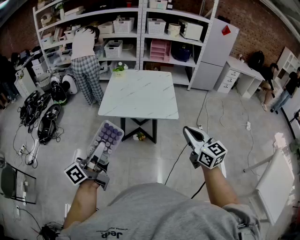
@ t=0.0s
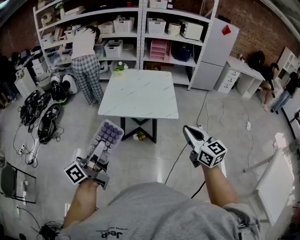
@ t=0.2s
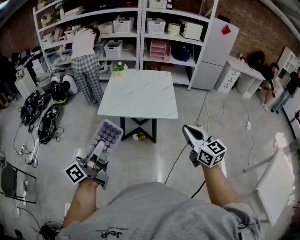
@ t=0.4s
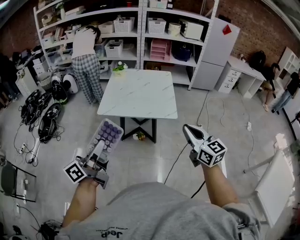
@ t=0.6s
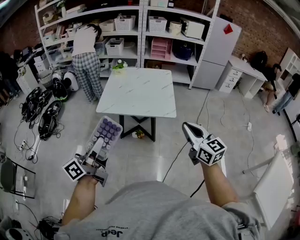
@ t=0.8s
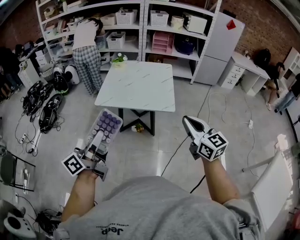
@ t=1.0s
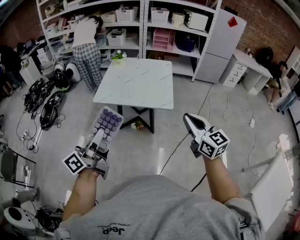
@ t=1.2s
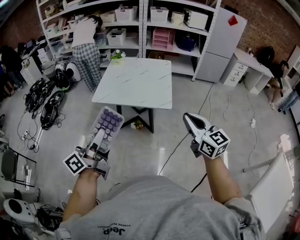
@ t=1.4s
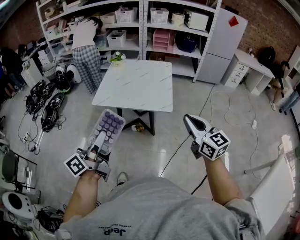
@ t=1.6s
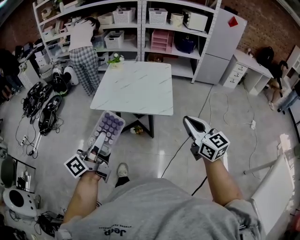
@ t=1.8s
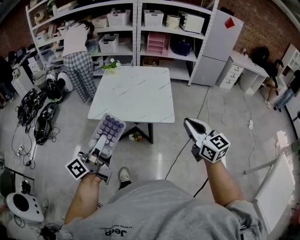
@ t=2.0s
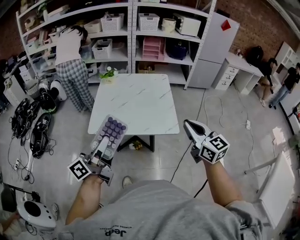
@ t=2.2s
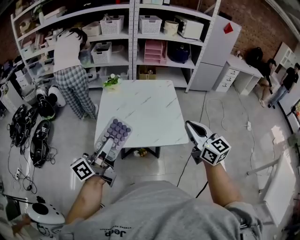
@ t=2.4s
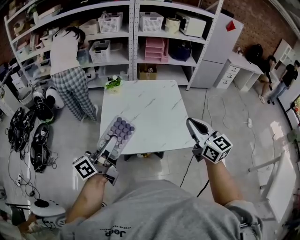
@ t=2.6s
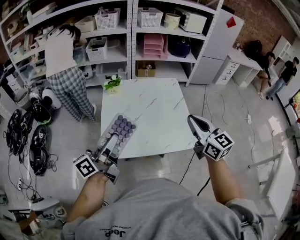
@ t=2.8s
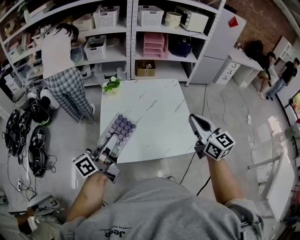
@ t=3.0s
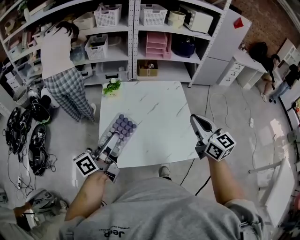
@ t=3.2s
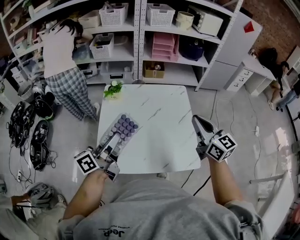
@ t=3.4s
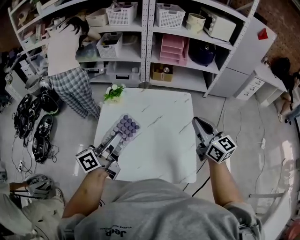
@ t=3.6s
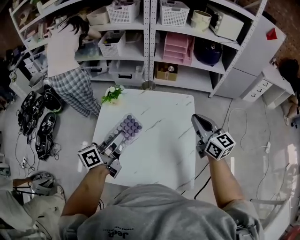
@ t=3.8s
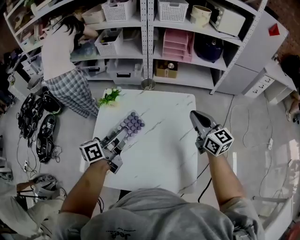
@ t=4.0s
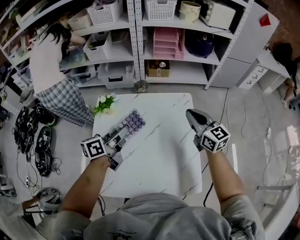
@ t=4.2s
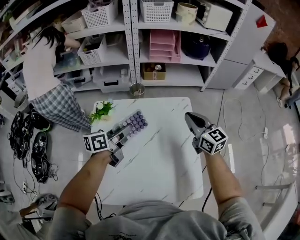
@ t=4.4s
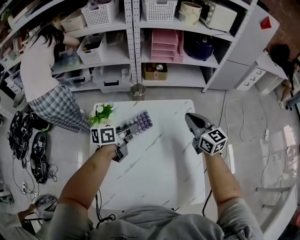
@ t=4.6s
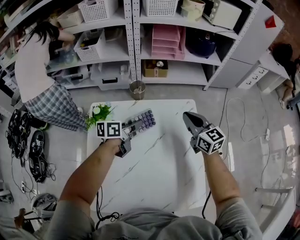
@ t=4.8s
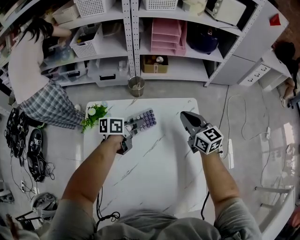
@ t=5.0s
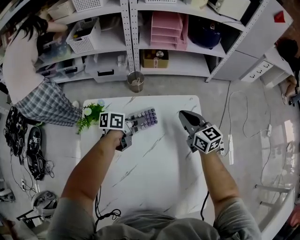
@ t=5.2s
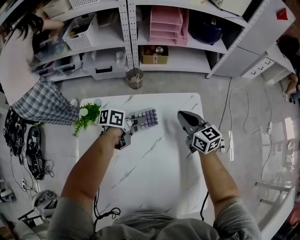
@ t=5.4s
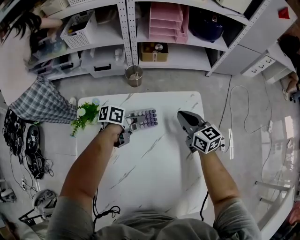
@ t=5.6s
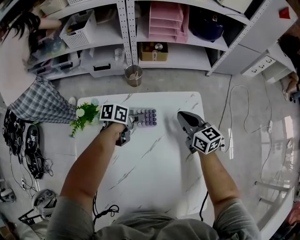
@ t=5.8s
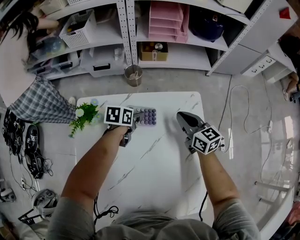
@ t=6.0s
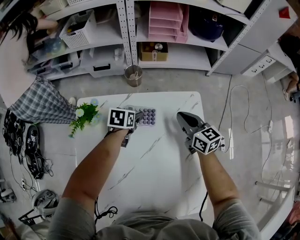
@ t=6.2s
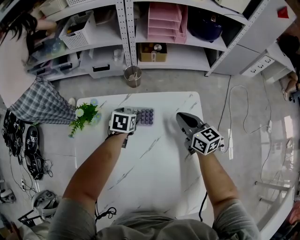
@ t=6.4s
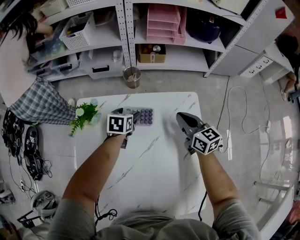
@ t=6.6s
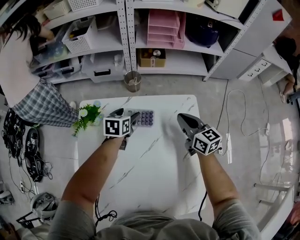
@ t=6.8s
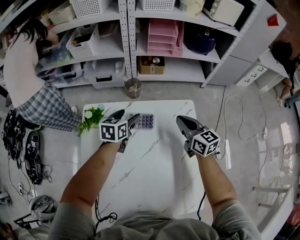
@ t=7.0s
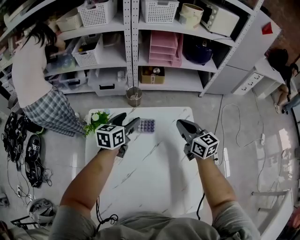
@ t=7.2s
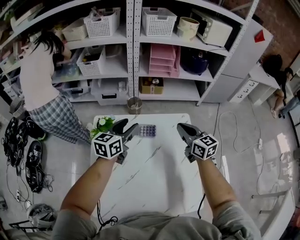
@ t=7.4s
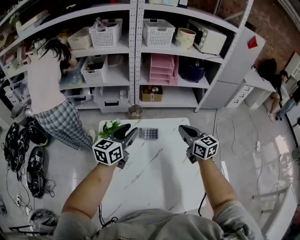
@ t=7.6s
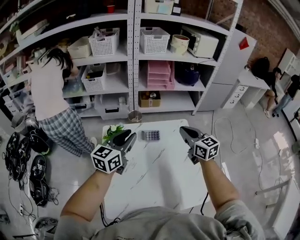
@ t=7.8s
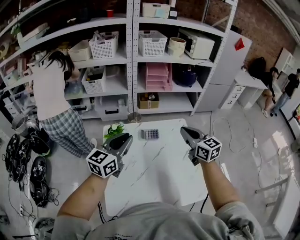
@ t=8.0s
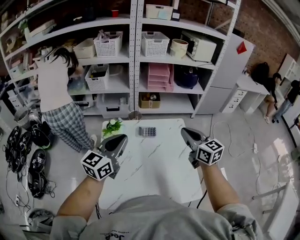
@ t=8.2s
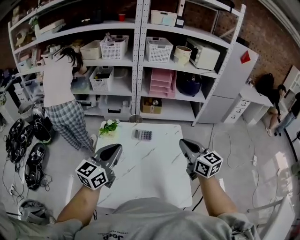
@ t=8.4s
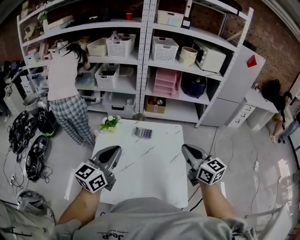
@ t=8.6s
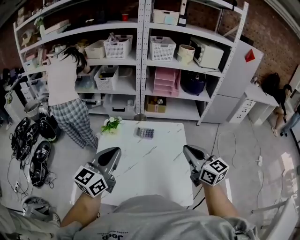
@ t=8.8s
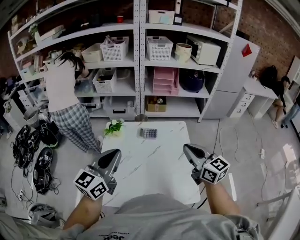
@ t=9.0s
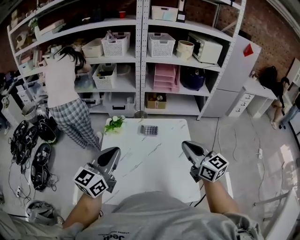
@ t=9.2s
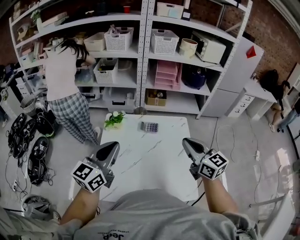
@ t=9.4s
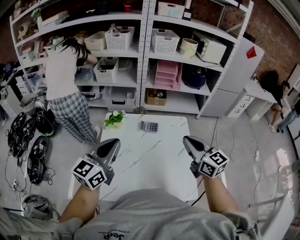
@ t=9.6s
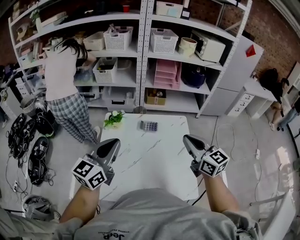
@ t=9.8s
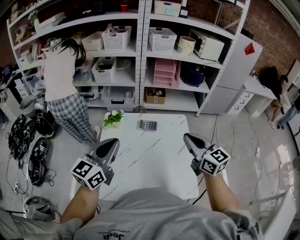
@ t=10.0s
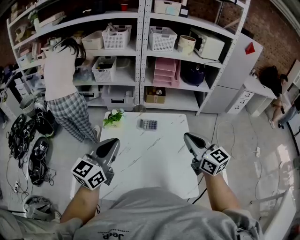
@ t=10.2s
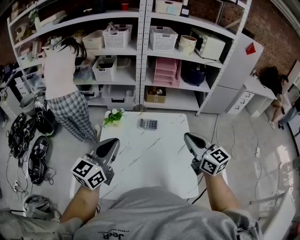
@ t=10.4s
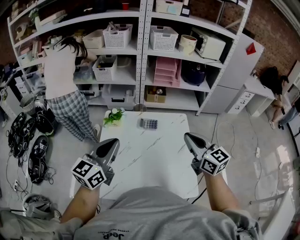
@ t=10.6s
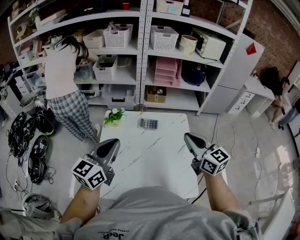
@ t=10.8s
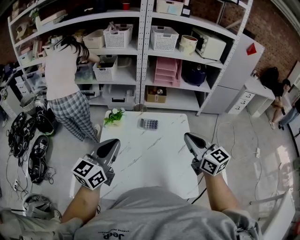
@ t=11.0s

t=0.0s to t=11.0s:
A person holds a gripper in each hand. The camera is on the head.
t=0.0s to t=1.6s: Both grippers travel together to the right, some 10 cm.
t=1.6s to t=3.2s: The two grippers travel together, forward and to the left, roughly 50 cm.
t=3.2s to t=4.8s: Both grippers move forward and downward, about 50 cm. The left gripper points its fingers some 30 degrees further downward.
t=4.8s to t=6.2s: Both grippers travel together downward and forward, some 15 cm. The left gripper points its fingers some 30 degrees further downward, and opens up.
t=6.2s to t=7.8s: The left gripper goes approximately 40 cm upward and backward, tilts its fingers some 50 degrees upward, and closes; the right gripper moves upward and backward, some 25 cm.
t=7.8s to t=9.4s: The left gripper moves backward, roughly 20 cm. The right gripper is displaced backward and upward by about 15 cm.
t=9.4s to t=11.0s: Both grippers stay put.

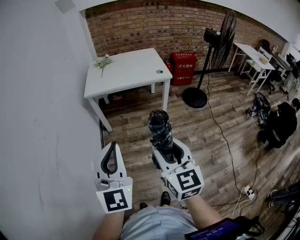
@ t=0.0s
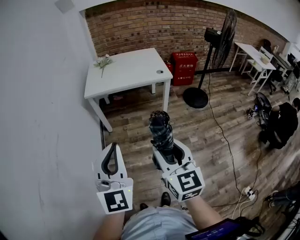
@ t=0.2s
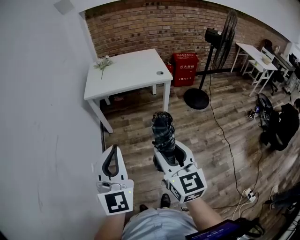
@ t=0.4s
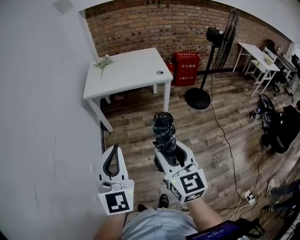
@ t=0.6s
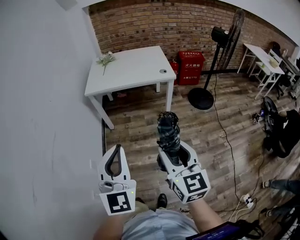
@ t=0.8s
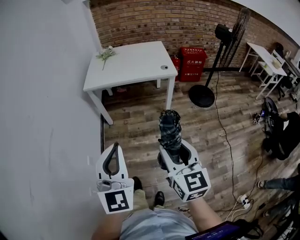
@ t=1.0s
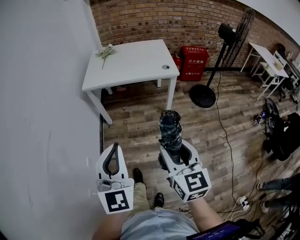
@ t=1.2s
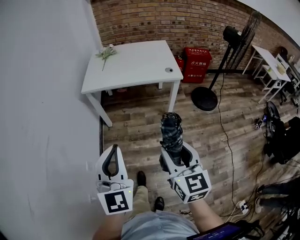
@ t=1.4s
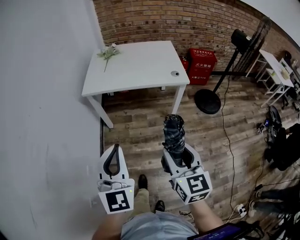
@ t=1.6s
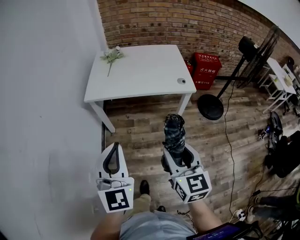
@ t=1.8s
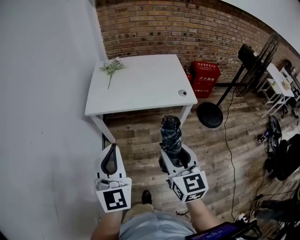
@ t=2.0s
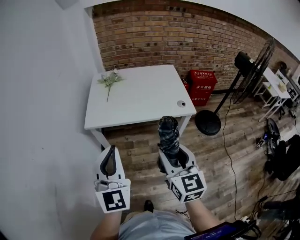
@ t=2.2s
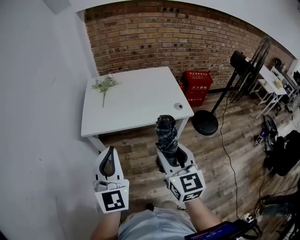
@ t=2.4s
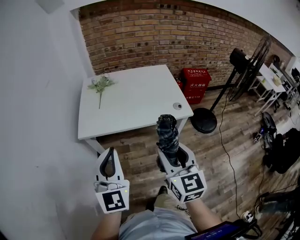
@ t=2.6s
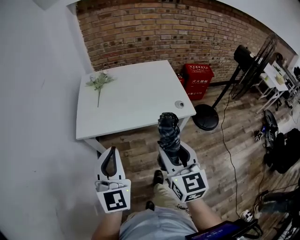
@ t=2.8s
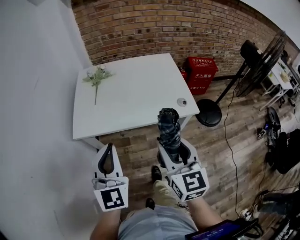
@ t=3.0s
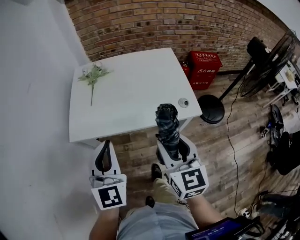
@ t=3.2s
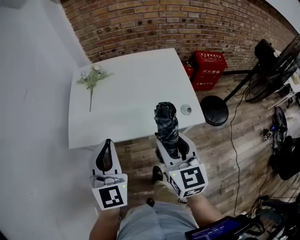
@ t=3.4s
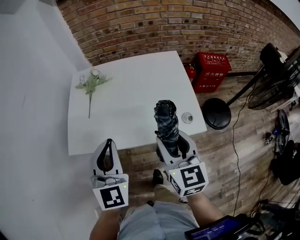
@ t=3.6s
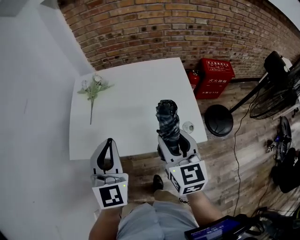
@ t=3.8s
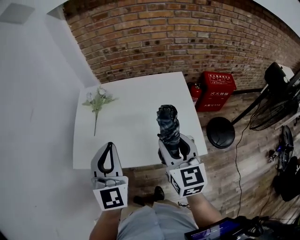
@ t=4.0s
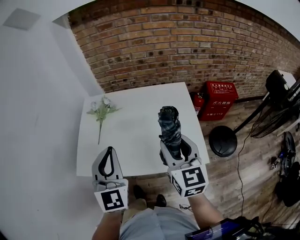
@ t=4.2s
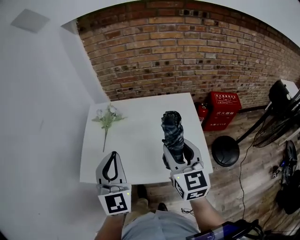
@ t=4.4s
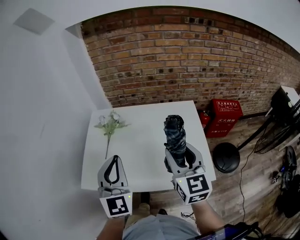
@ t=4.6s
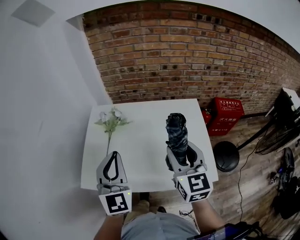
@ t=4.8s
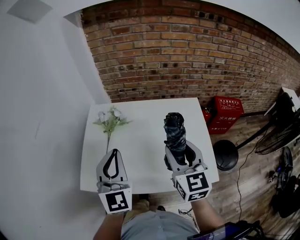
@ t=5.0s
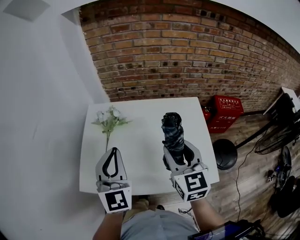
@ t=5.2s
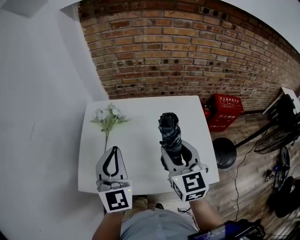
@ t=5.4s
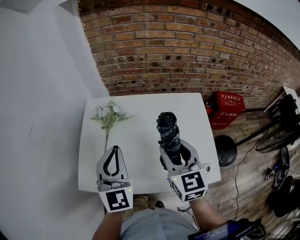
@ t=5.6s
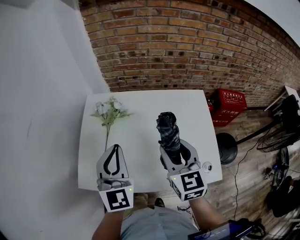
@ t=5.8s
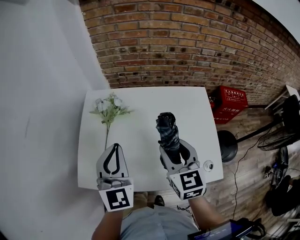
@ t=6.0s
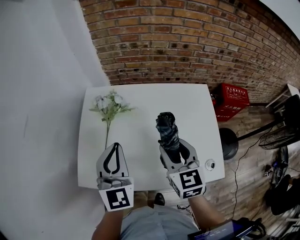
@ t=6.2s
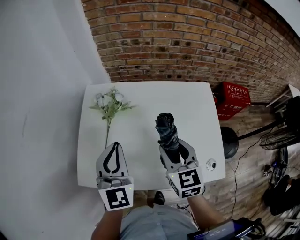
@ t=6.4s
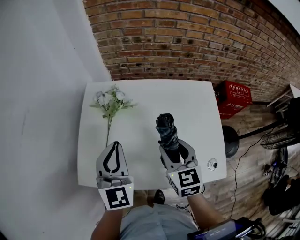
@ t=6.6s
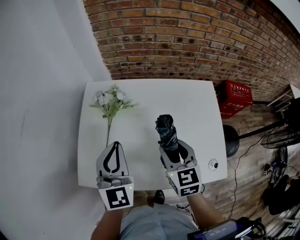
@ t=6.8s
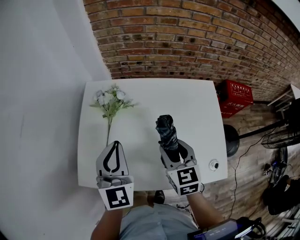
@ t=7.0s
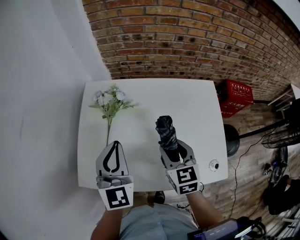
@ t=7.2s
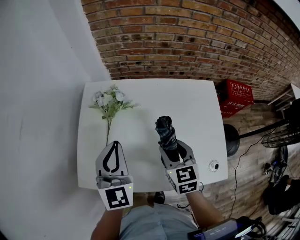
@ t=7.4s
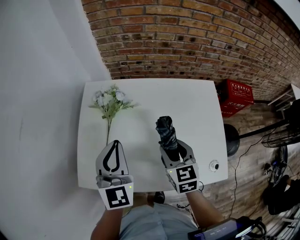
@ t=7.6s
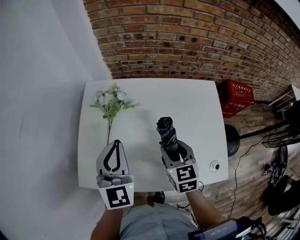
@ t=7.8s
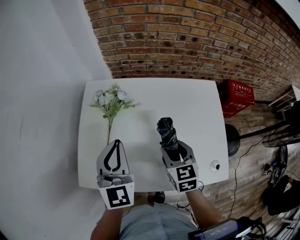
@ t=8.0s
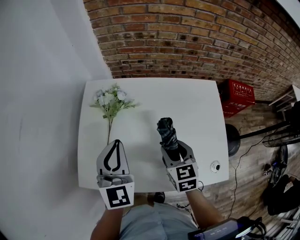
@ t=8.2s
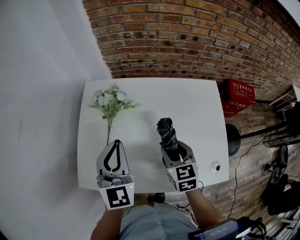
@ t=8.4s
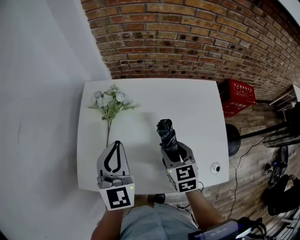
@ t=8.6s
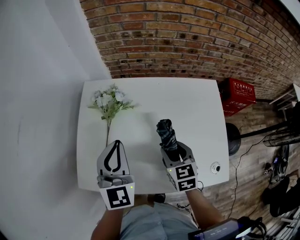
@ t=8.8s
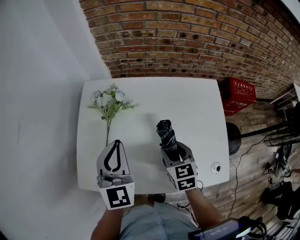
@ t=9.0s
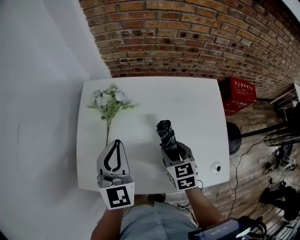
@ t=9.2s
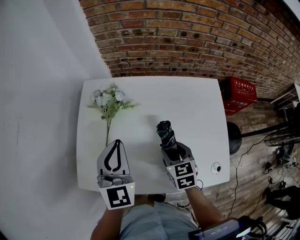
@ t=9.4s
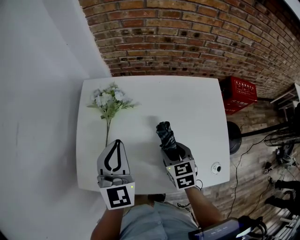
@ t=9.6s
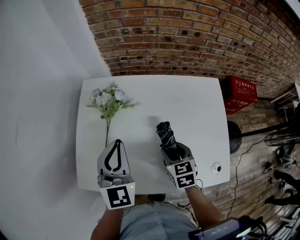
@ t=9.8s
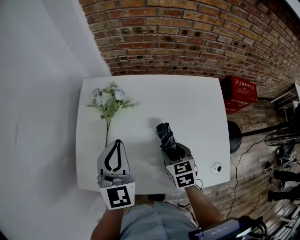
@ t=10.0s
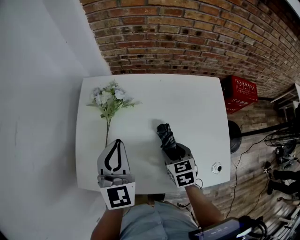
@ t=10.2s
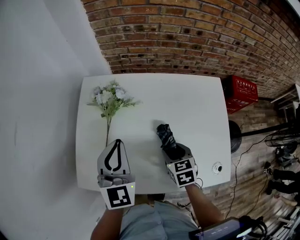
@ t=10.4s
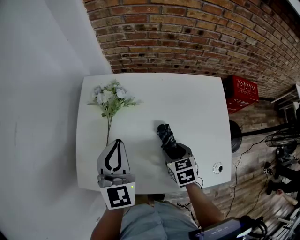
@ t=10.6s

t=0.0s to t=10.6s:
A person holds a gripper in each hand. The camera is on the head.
t=0.0s to t=1.6s: The two grippers go about 20 cm forward.
t=1.6s to t=3.0s: Both grippers move forward, roughly 30 cm.
t=3.0s to t=4.6s: The two grippers go approximately 30 cm forward.
t=4.6s to t=6.0s: The left gripper heads forward and downward, covering some 10 cm. Meanwhile the right gripper shifts some 15 cm downward, forward and to the left.
t=6.0s to t=7.6s: The right gripper is displaced downward by approximately 10 cm, while the left gripper changes place by approximately 5 cm.
t=7.6s to t=9.0s: There are only small adjustments of the grippers.
t=9.0s to t=10.6s: The right gripper is displaced downward by roughly 5 cm.

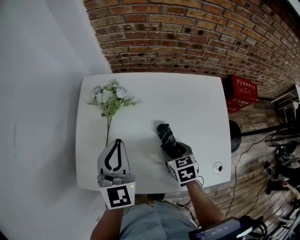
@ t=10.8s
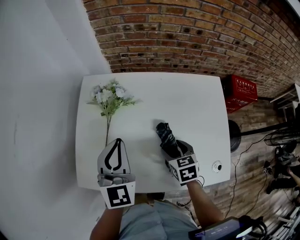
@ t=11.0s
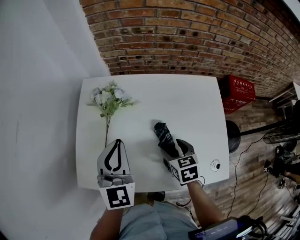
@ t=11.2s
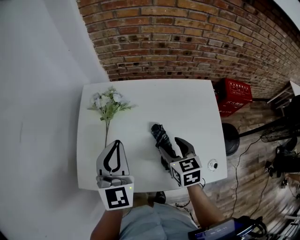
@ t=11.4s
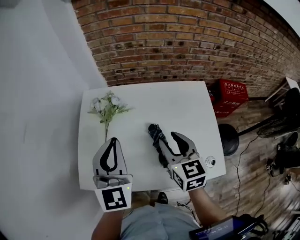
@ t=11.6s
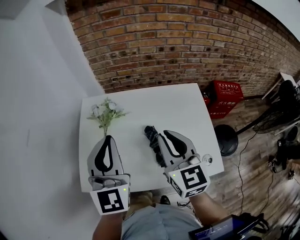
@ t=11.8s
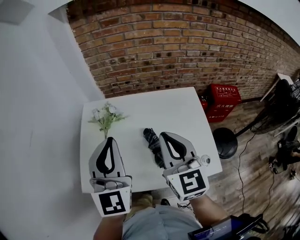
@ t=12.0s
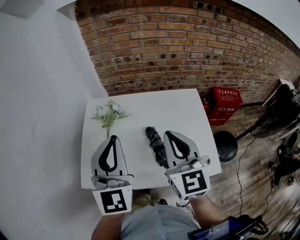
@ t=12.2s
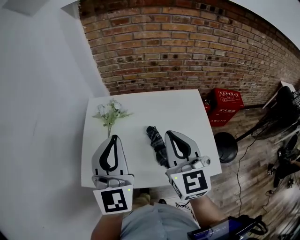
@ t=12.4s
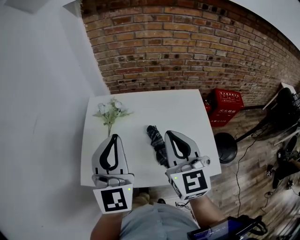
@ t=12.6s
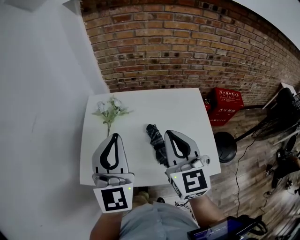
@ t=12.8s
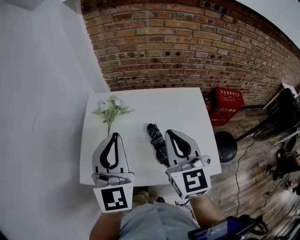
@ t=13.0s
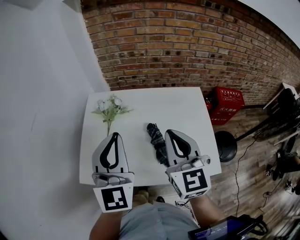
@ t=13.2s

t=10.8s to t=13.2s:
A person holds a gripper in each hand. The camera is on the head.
t=10.8s to t=12.0s: The right gripper is displaced upward by some 30 cm, tilts its fingers about 50 degrees upward, and closes its fingers. The left gripper travels upward and backward by some 20 cm.
t=12.0s to t=13.2s: The grippers move only a little.
